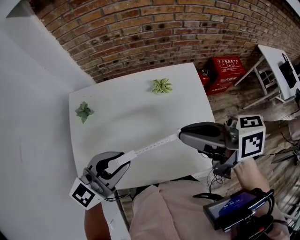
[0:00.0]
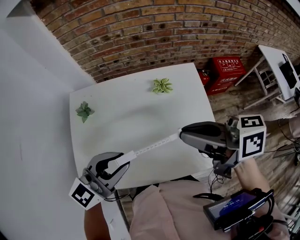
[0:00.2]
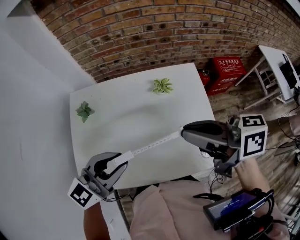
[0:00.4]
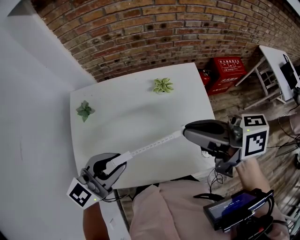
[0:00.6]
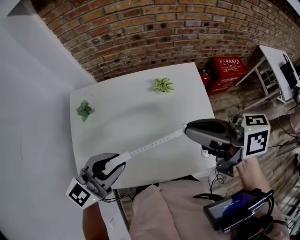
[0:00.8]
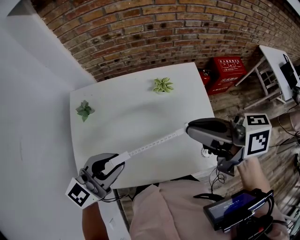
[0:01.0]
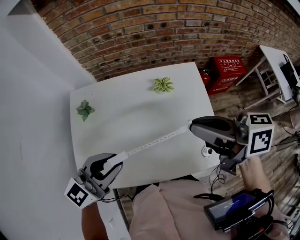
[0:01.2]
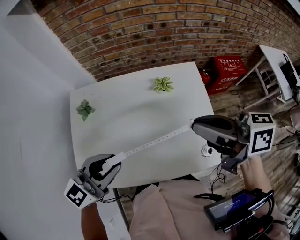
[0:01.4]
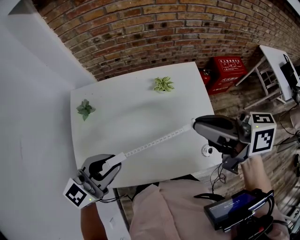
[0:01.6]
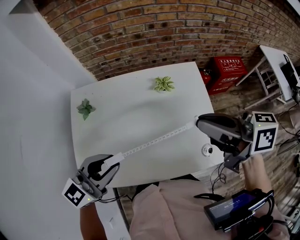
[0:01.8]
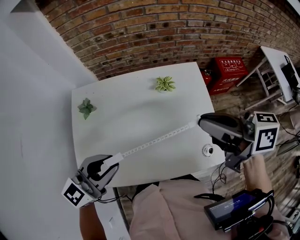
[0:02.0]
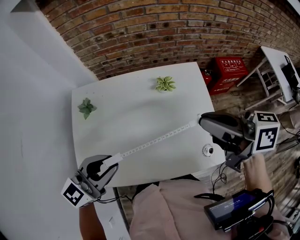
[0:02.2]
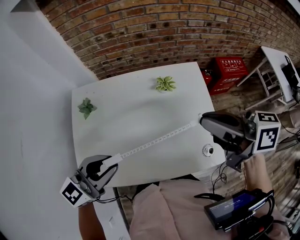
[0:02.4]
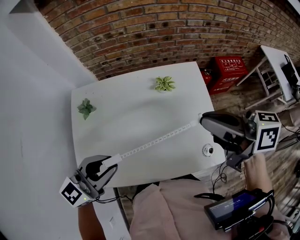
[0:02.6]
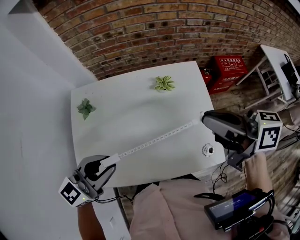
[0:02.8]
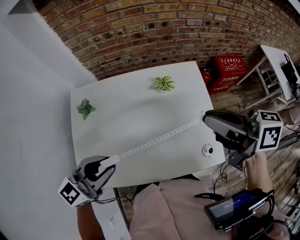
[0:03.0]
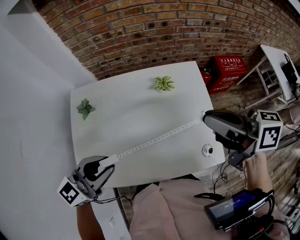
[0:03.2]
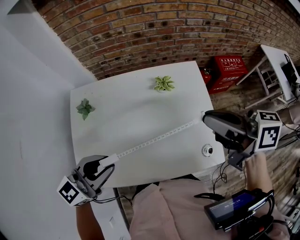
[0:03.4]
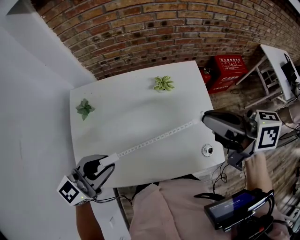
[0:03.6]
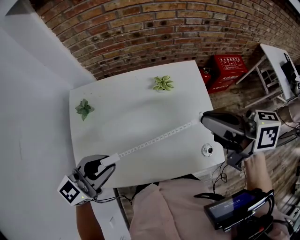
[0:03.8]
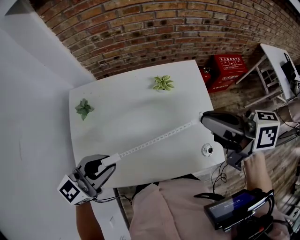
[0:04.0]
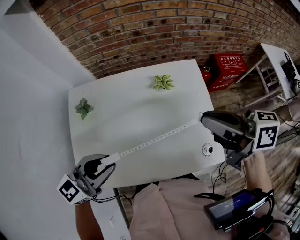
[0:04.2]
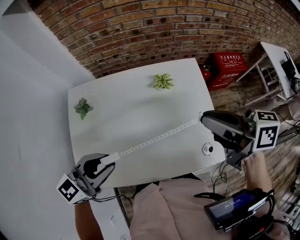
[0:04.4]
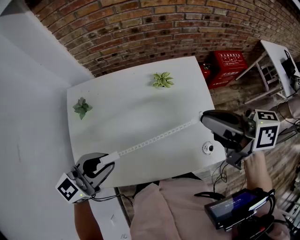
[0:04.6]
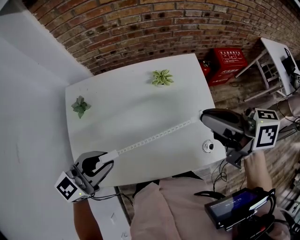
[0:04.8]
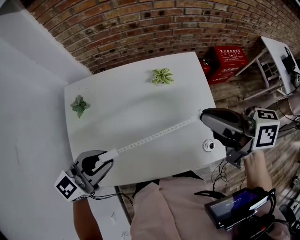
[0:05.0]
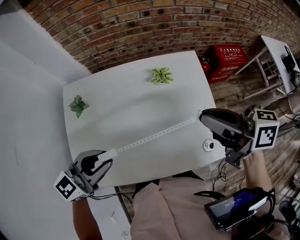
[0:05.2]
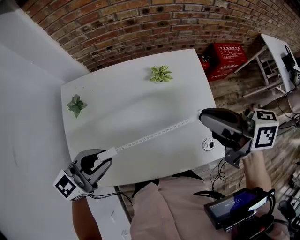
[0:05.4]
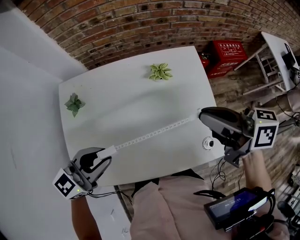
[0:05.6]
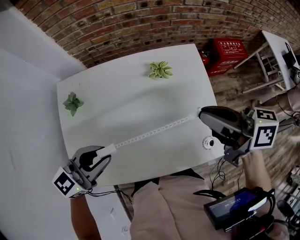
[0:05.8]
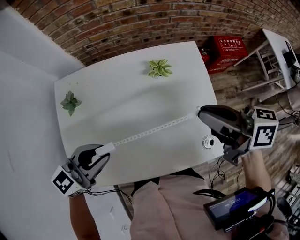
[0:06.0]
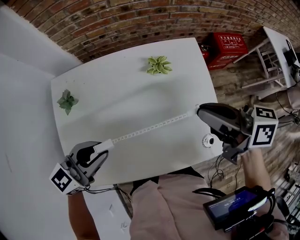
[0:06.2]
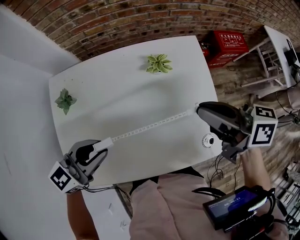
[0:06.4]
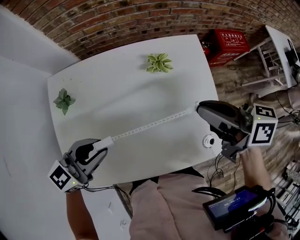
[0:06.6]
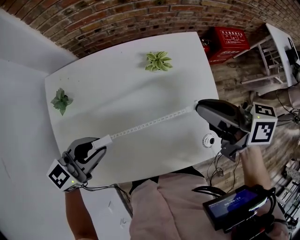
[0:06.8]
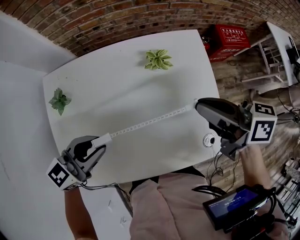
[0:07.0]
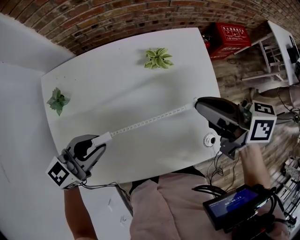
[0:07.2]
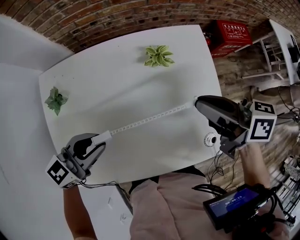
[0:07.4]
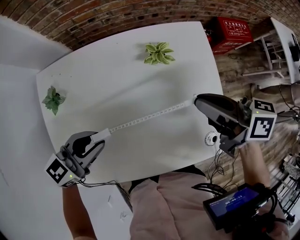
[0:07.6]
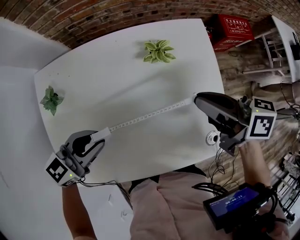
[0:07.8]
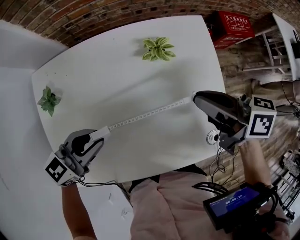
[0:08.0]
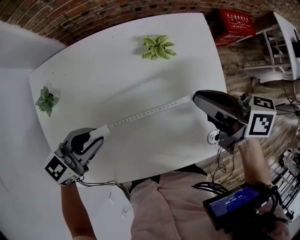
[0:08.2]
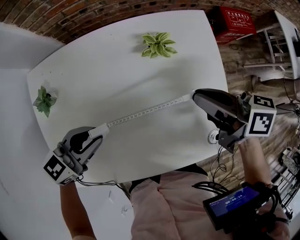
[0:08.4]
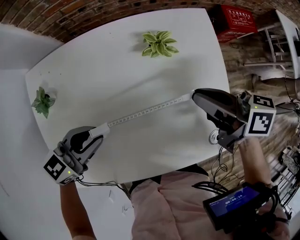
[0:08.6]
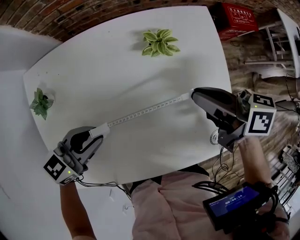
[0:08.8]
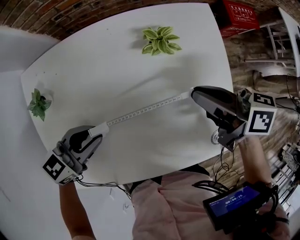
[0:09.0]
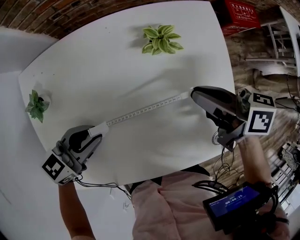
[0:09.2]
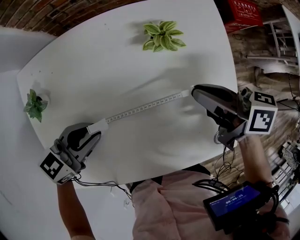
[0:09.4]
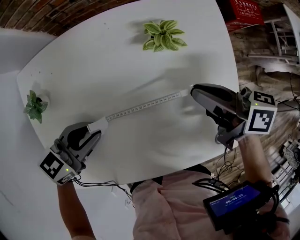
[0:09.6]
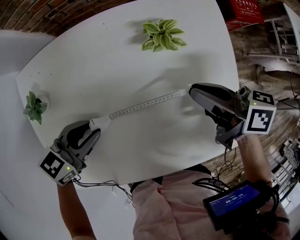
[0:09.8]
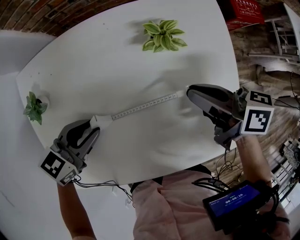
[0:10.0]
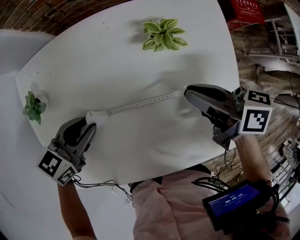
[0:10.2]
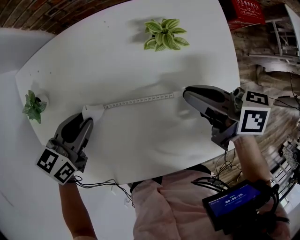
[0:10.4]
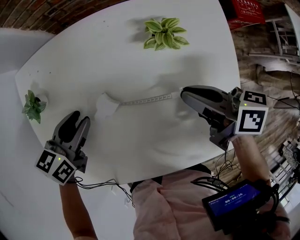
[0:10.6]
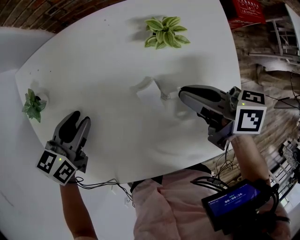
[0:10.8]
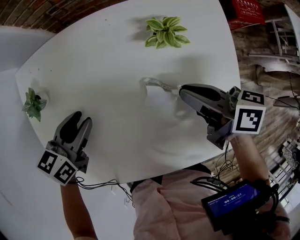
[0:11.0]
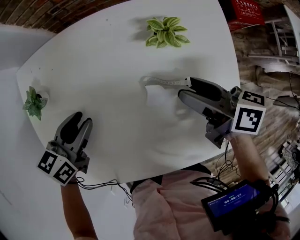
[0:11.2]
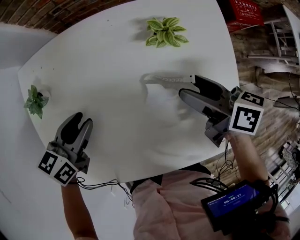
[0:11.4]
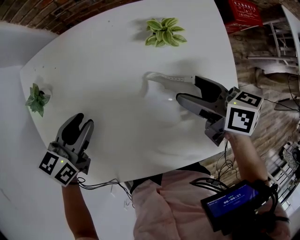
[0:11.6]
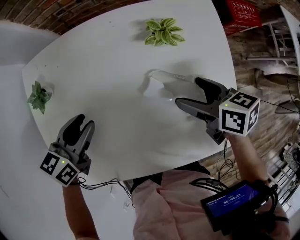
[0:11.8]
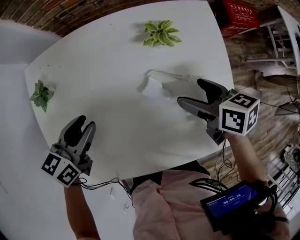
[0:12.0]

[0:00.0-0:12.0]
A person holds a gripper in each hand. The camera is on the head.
0.0 to 3.0 s: There are only small adjustments of the grippers.
3.0 to 4.4 s: There are only small adjustments of the grippers.
4.4 to 6.0 s: Both grippers move downward, approximately 5 cm.
6.0 to 7.6 s: The grippers both shift downward by roughly 10 cm.
7.6 to 9.0 s: Both grippers move downward, roughly 5 cm.
9.0 to 10.4 s: The left gripper ends up roughly 5 cm from where it was, and changes its angle by approximately 20 degrees.
10.4 to 12.0 s: The right gripper turns by some 20 degrees, and opens.

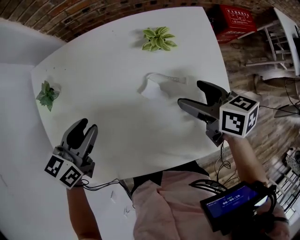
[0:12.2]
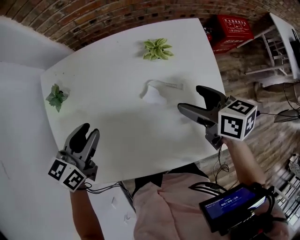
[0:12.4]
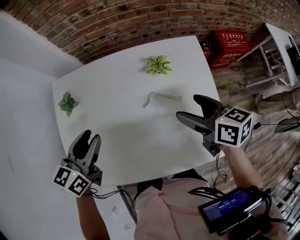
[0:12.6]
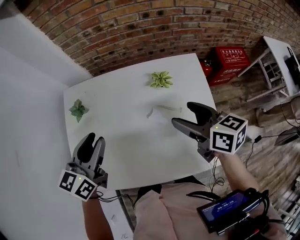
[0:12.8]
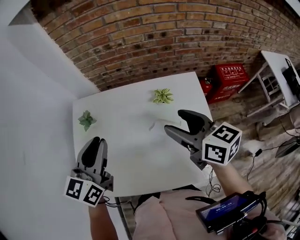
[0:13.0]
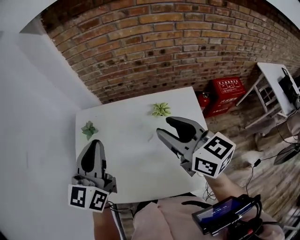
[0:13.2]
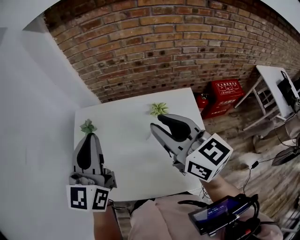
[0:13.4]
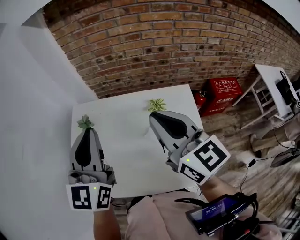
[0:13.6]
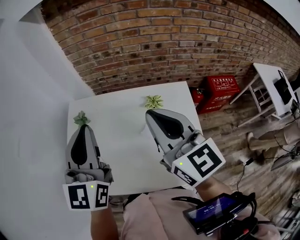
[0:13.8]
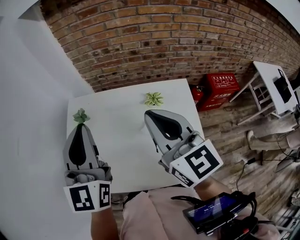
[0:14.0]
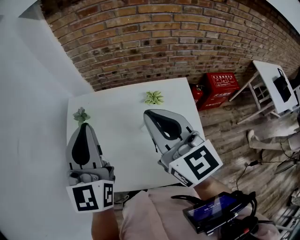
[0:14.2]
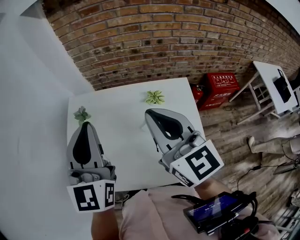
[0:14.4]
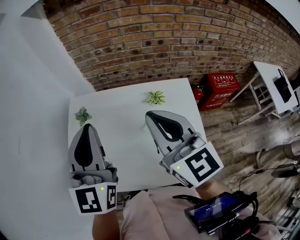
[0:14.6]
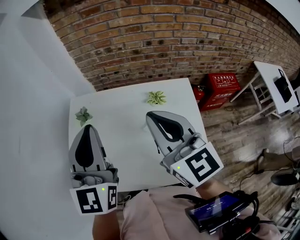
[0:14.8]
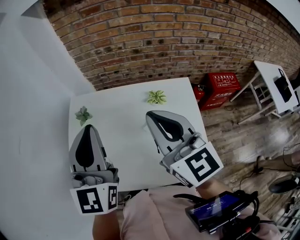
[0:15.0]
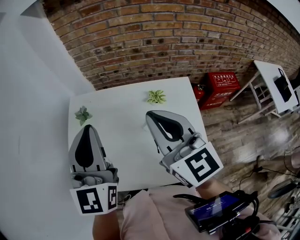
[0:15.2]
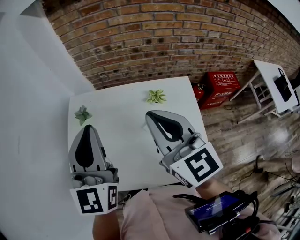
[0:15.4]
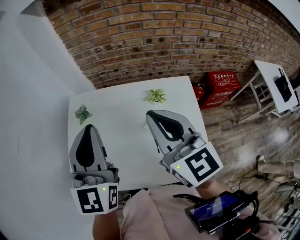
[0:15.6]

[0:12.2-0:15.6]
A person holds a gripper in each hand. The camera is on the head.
12.2 to 13.8 s: The grippers both shift upward by approximately 30 cm. The right gripper tilts its fingers about 40 degrees upward, and closes its fingers. The left gripper tilts its fingers some 40 degrees upward, and closes.
13.8 to 15.6 s: There are only small adjustments of the grippers.

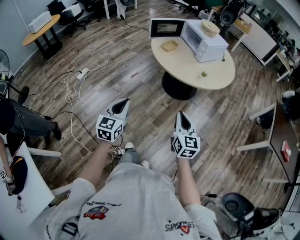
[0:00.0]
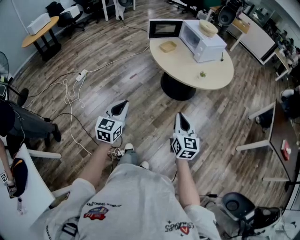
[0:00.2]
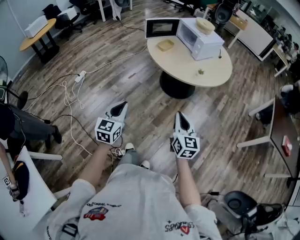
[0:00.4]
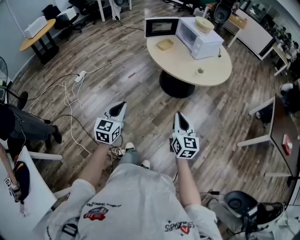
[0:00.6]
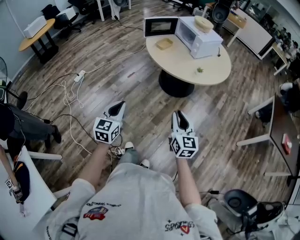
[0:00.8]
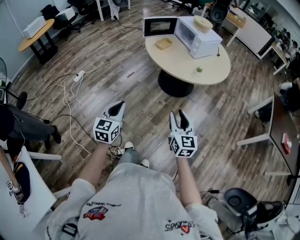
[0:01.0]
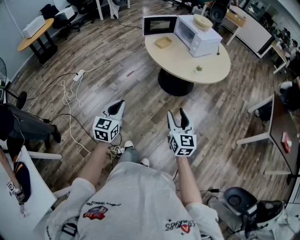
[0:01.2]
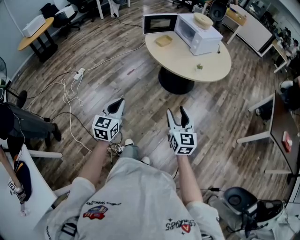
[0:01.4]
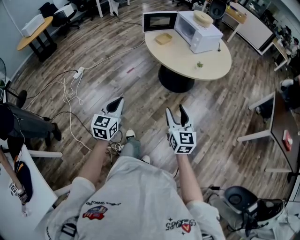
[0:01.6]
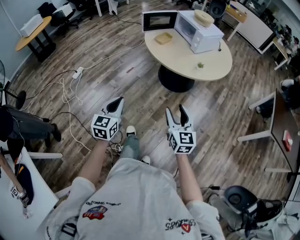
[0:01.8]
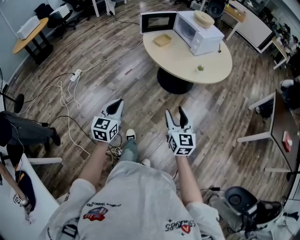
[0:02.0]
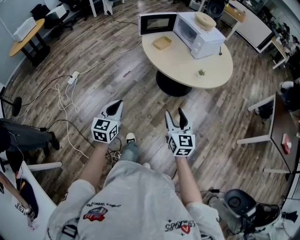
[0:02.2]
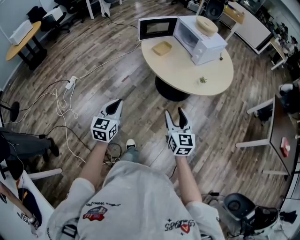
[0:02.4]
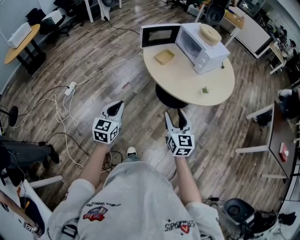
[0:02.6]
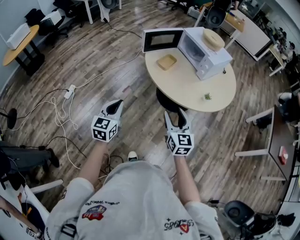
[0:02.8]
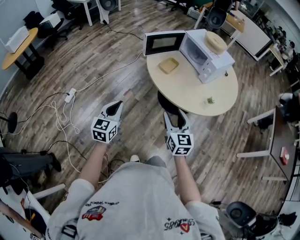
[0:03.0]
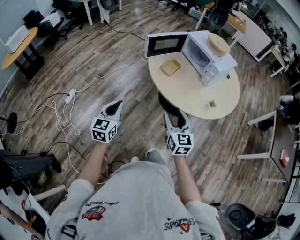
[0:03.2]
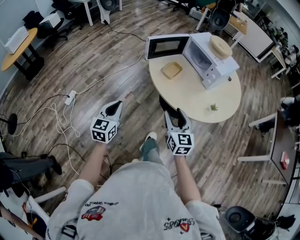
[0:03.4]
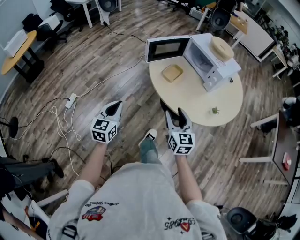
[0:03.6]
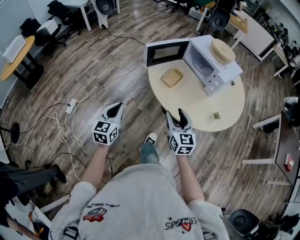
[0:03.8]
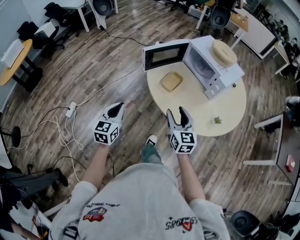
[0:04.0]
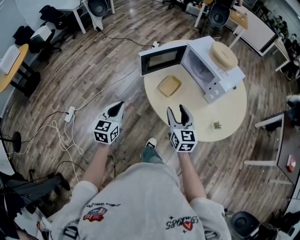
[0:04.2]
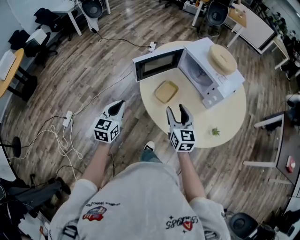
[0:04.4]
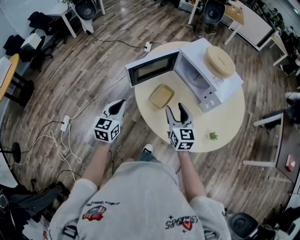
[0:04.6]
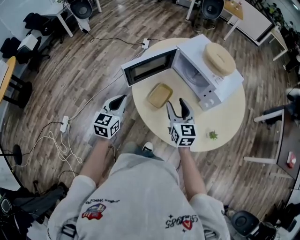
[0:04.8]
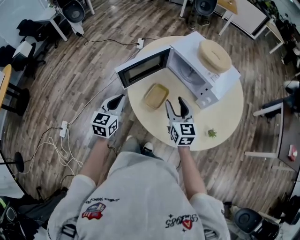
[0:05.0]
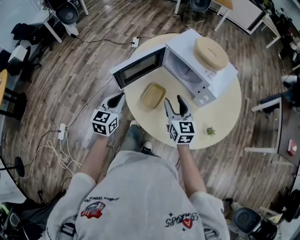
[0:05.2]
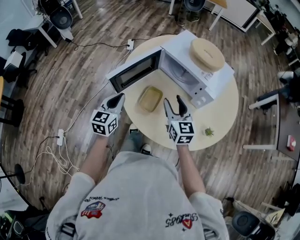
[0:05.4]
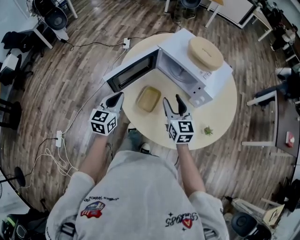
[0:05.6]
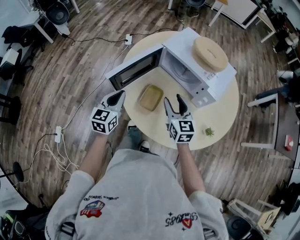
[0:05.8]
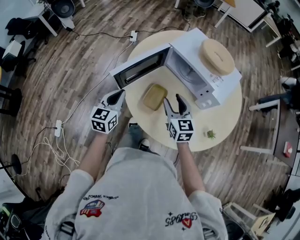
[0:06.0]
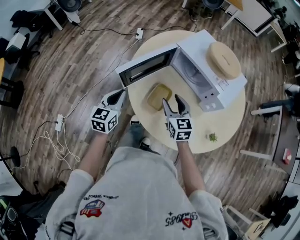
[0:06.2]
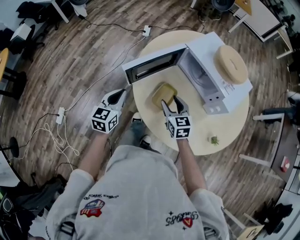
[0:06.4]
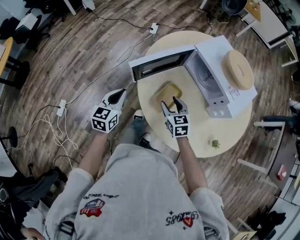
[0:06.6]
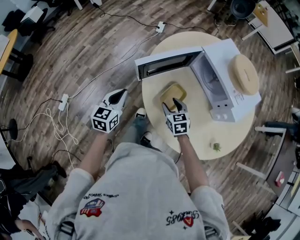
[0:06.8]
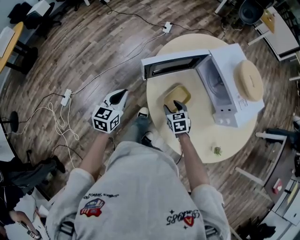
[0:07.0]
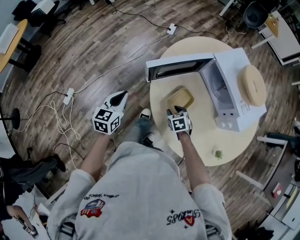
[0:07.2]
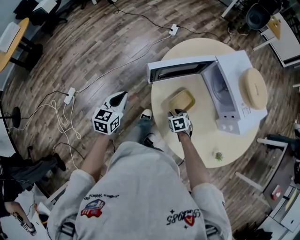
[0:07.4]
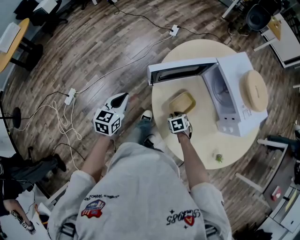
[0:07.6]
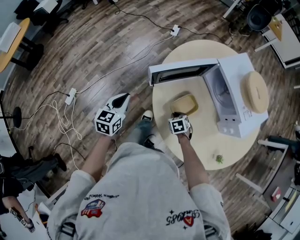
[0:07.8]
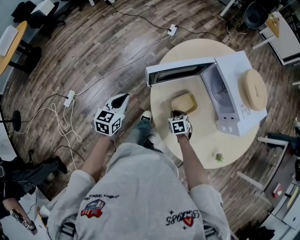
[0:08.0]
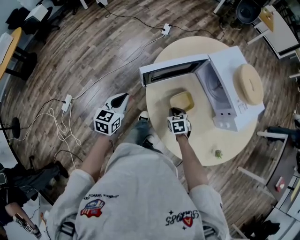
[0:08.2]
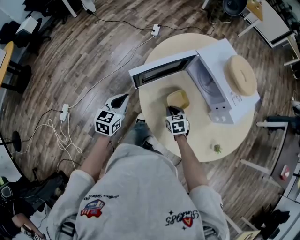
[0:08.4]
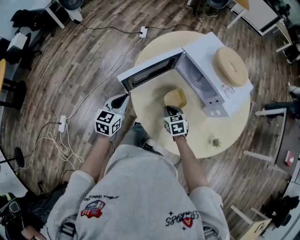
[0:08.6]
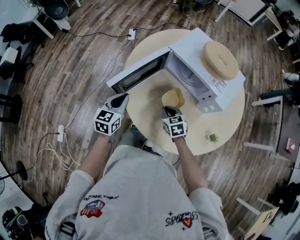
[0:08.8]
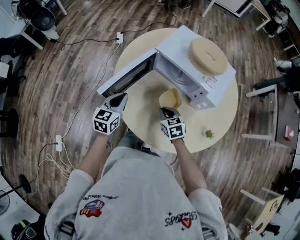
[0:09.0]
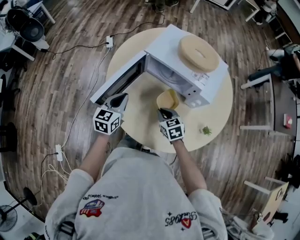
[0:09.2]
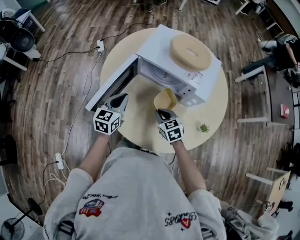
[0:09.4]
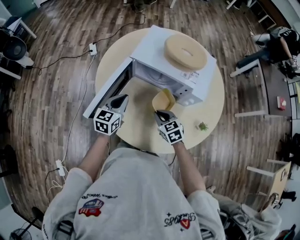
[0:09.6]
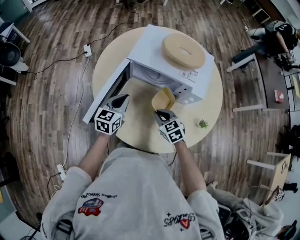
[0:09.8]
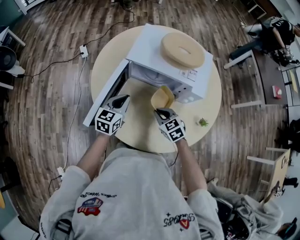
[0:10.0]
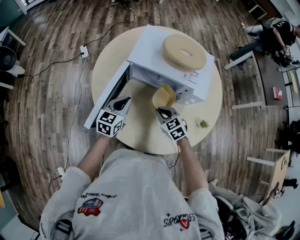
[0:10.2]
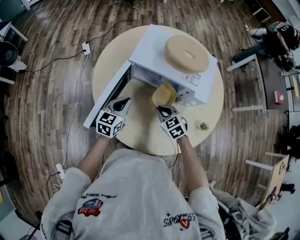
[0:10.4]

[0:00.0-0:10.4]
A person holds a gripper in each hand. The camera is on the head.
0.0 to 1.4 s: The right gripper opens its fingers.
1.4 to 3.0 s: The pair of grippers is taken forward and to the left, approximately 40 cm.
3.0 to 4.4 s: Both grippers travel together forward, some 35 cm.
4.4 to 6.0 s: The two grippers go about 20 cm forward.
6.0 to 7.4 s: The left gripper shifts about 15 cm to the left. The right gripper goes roughly 25 cm downward and to the left, and tilts its fingers approximately 40 degrees downward.
7.4 to 9.0 s: The right gripper travels to the right and upward by about 15 cm, changes its angle by approximately 30 degrees, and closes its fingers, while the left gripper goes about 25 cm to the right and forward, and changes its angle by roughly 30 degrees.
9.0 to 10.4 s: The right gripper is displaced forward by approximately 10 cm, while the left gripper goes roughly 15 cm forward and to the right, and turns by roughly 20 degrees.
